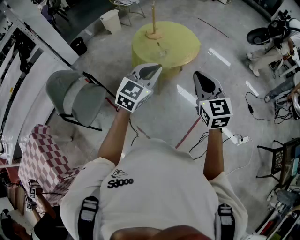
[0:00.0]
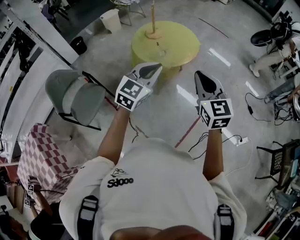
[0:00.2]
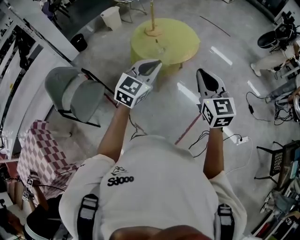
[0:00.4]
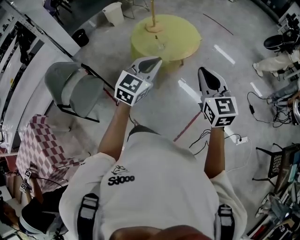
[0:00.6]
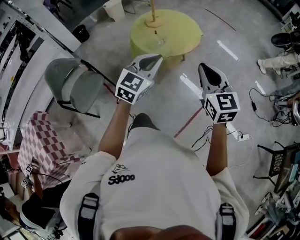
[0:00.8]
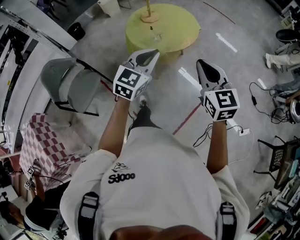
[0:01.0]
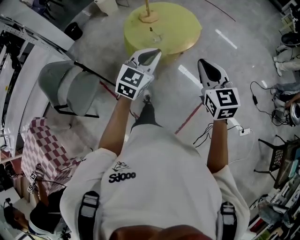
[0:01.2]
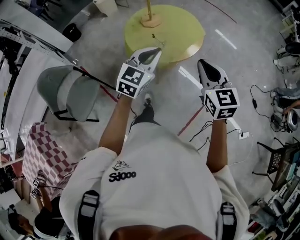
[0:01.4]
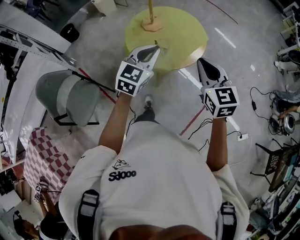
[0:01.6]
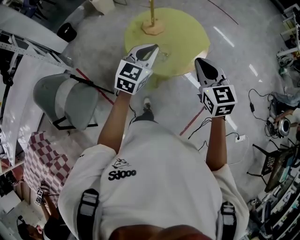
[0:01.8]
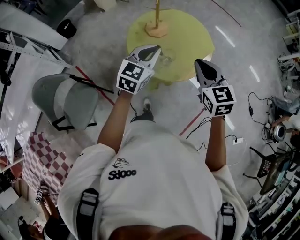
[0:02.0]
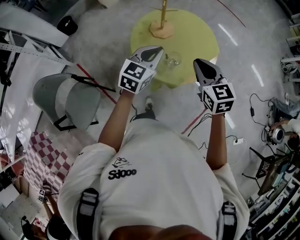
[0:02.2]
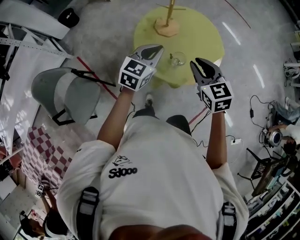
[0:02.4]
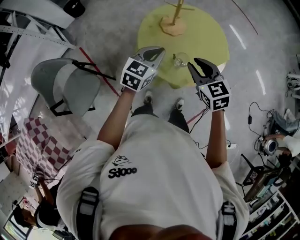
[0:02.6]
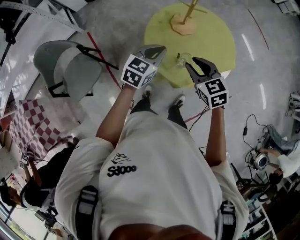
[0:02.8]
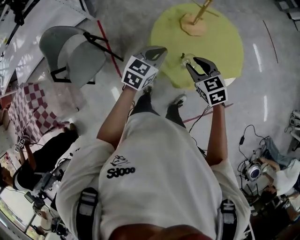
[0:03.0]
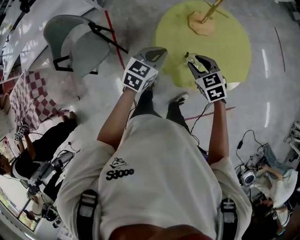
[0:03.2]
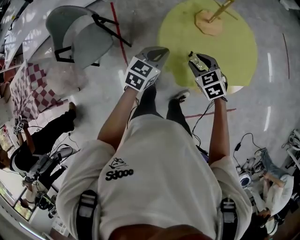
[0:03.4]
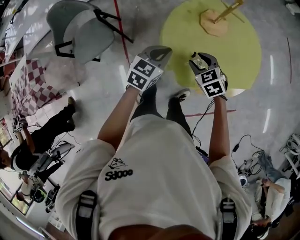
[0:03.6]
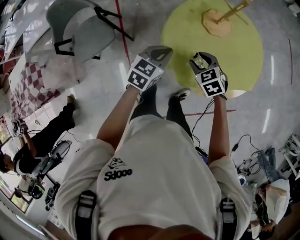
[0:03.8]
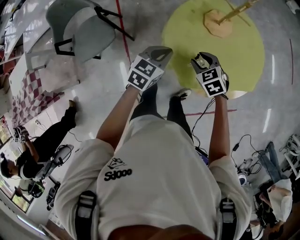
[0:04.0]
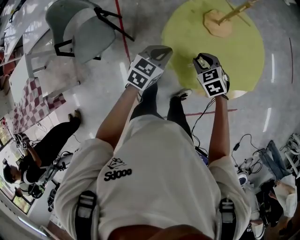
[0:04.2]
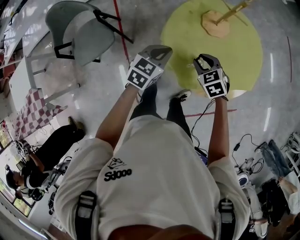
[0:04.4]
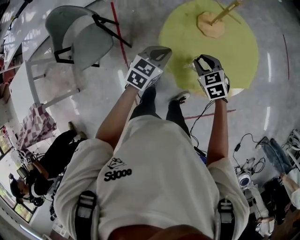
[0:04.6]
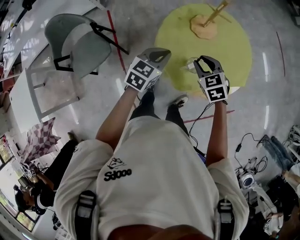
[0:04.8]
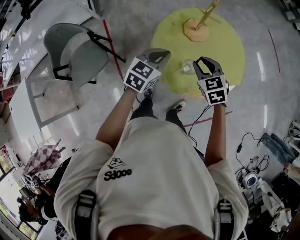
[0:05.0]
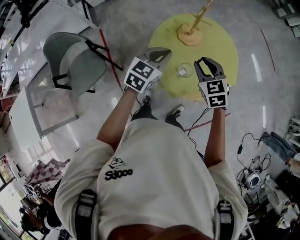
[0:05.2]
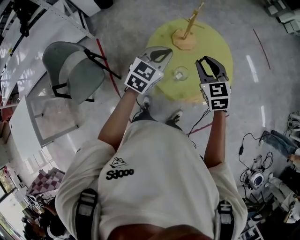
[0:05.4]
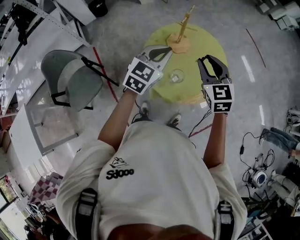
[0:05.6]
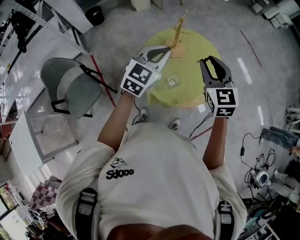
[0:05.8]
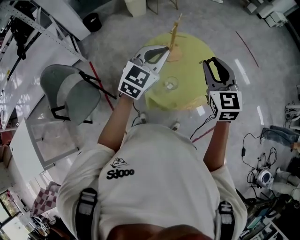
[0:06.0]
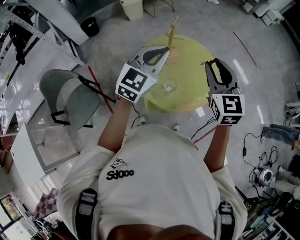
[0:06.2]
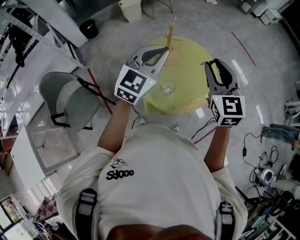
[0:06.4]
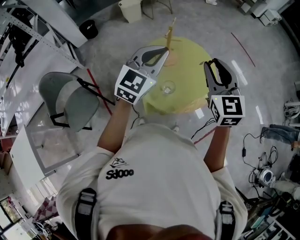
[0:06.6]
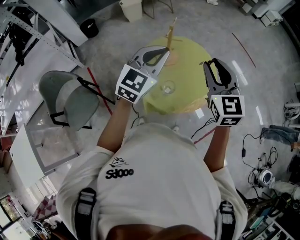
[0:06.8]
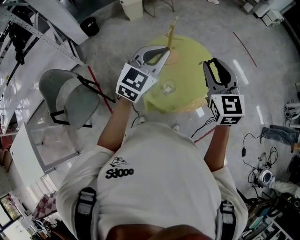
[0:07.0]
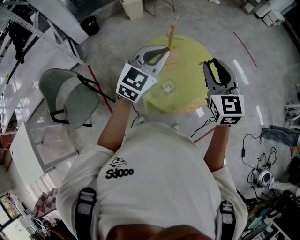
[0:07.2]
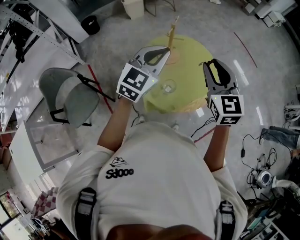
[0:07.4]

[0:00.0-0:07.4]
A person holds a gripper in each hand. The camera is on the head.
0:00.0 to 0:01.4: Both grippers travel together forward, approximately 15 cm.
0:01.4 to 0:03.0: The left gripper shifts by some 30 cm, and turns by approximately 30 degrees. The right gripper shifts by roughly 35 cm, changes its angle by roughly 50 degrees, and opens its fingers.
0:03.0 to 0:04.4: The right gripper goes some 15 cm downward and forward. Meanwhile the left gripper moves downward, roughly 10 cm.
0:04.4 to 0:06.0: The grippers both shift upward by roughly 30 cm. The right gripper tips its fingers upward by approximately 40 degrees. Meanwhile the left gripper rotates about 40 degrees.
0:06.0 to 0:07.4: The grippers move only a little.

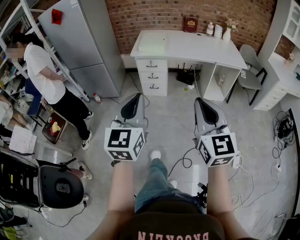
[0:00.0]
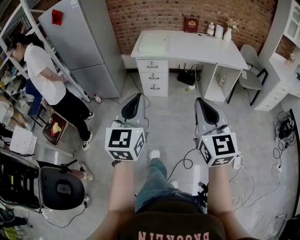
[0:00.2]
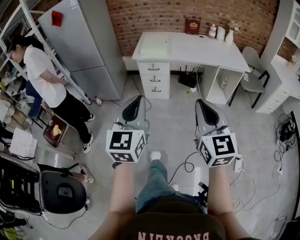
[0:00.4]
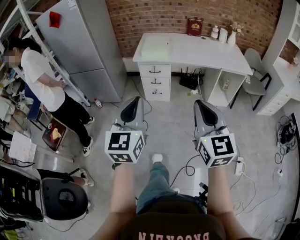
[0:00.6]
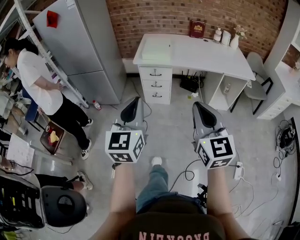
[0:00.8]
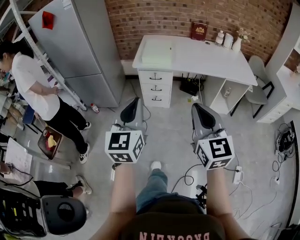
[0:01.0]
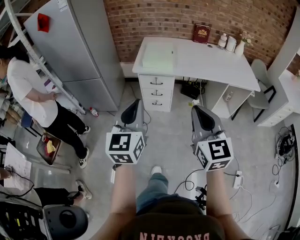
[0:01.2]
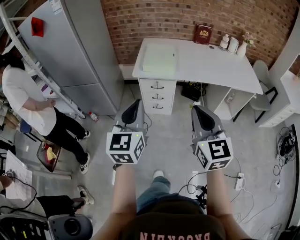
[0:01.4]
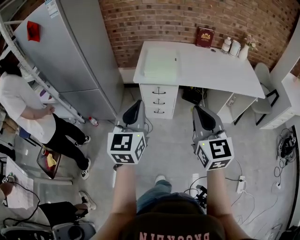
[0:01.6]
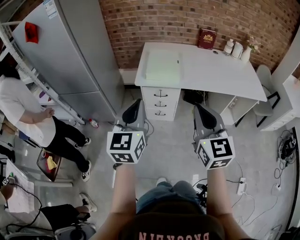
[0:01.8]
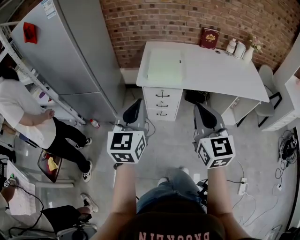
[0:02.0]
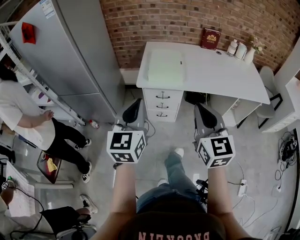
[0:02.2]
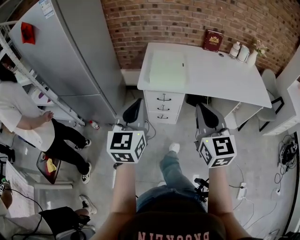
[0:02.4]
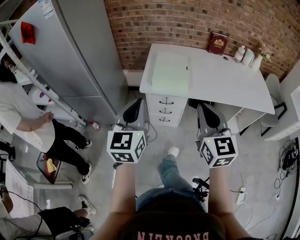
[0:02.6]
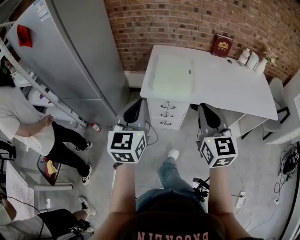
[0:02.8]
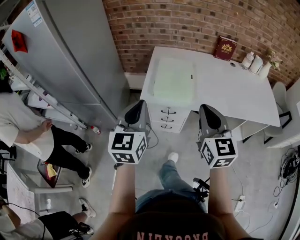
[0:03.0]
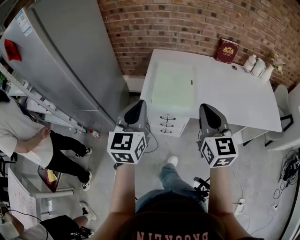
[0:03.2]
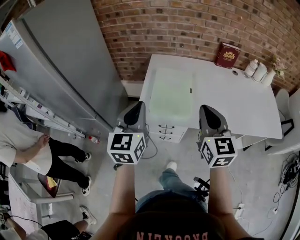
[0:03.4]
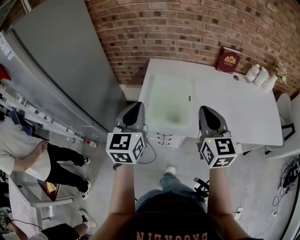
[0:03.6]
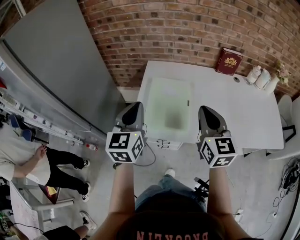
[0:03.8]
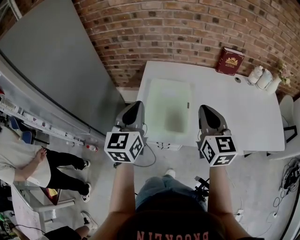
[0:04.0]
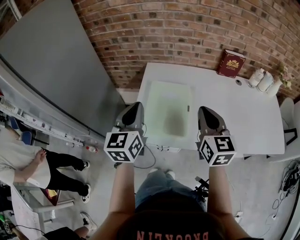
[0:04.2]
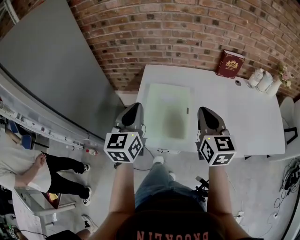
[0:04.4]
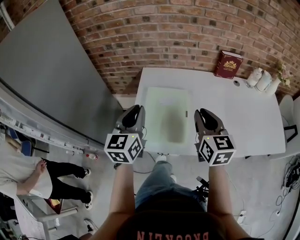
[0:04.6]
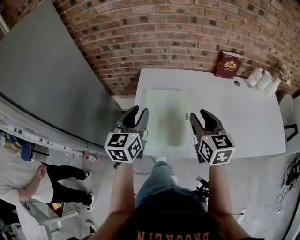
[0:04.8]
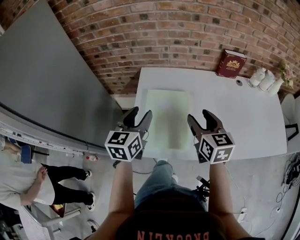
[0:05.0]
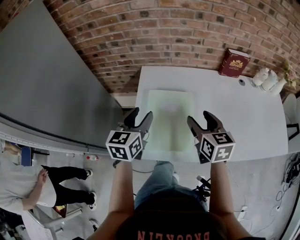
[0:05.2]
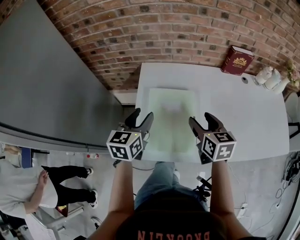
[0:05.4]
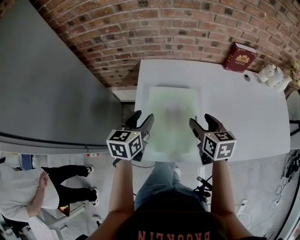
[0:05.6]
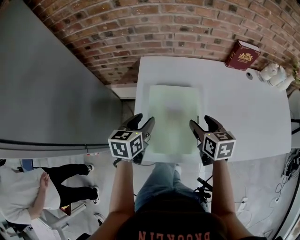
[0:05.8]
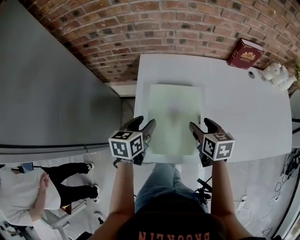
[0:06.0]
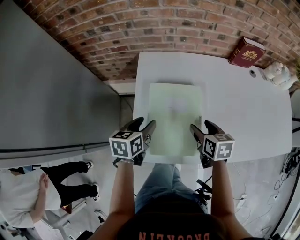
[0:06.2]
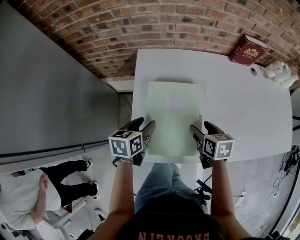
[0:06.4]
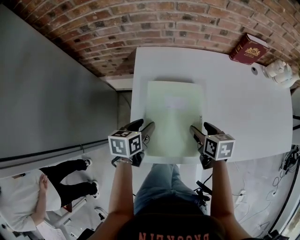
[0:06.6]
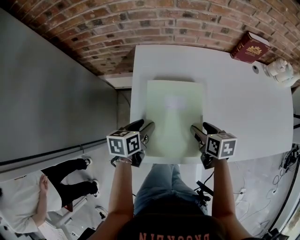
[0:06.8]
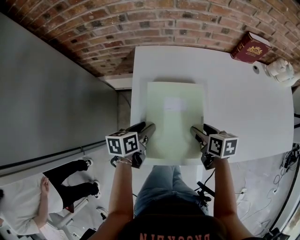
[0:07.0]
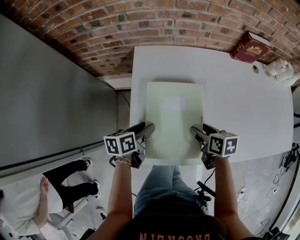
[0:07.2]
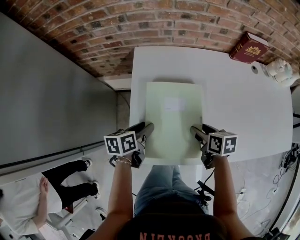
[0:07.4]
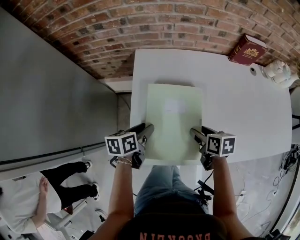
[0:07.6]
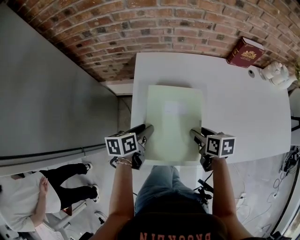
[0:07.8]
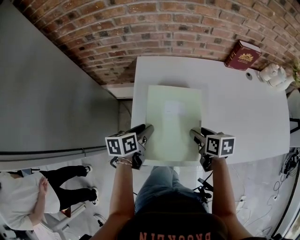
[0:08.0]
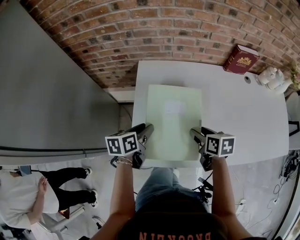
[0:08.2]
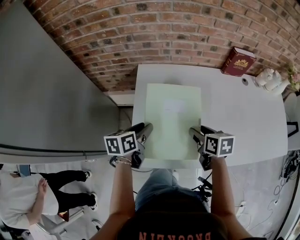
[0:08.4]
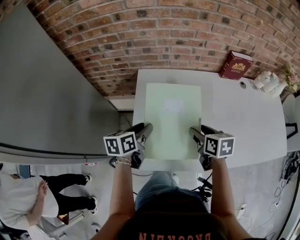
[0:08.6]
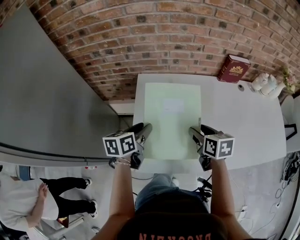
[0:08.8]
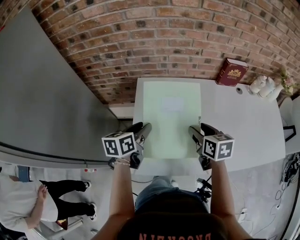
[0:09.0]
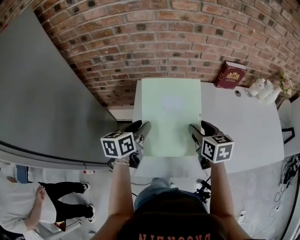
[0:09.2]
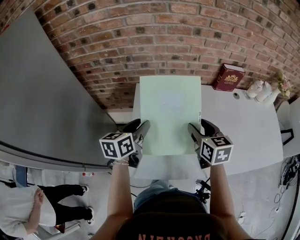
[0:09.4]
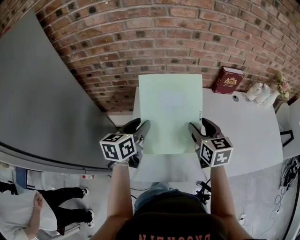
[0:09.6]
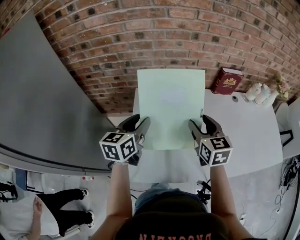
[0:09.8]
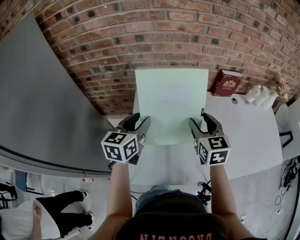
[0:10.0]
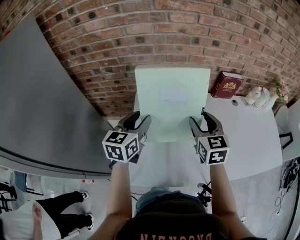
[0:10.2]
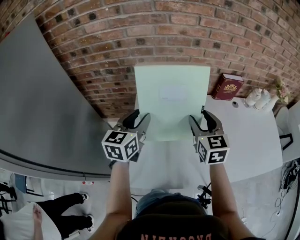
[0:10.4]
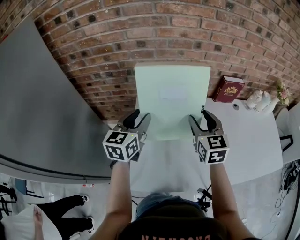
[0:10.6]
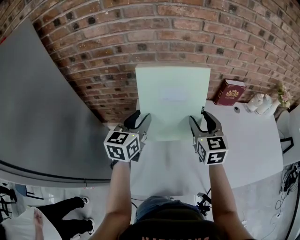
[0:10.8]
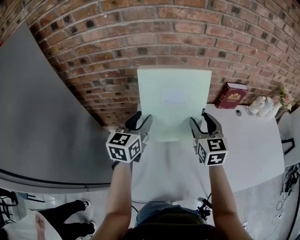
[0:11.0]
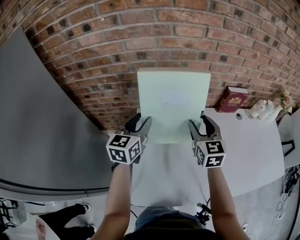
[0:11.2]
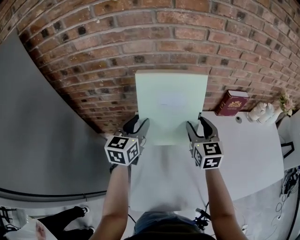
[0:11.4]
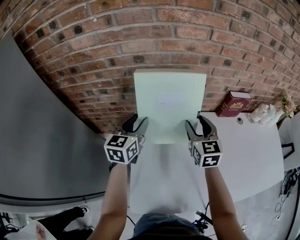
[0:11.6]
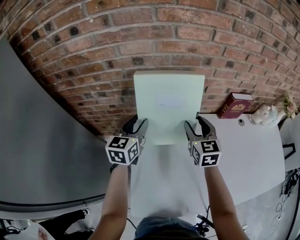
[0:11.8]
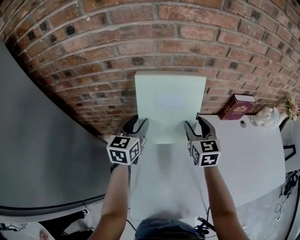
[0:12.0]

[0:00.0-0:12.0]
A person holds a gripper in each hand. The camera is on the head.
0:00.0 to 0:01.6: The two grippers go roughly 35 cm forward.
0:01.6 to 0:03.0: The two grippers go roughly 20 cm forward.
0:03.0 to 0:04.4: Both grippers travel together forward, some 25 cm.
0:04.4 to 0:06.0: Both grippers move downward and forward, about 20 cm. The left gripper tips its fingers downward by about 30 degrees, and opens up; the right gripper points its fingers about 30 degrees further downward, and opens its fingers.
0:06.0 to 0:07.6: Both grippers move downward, about 5 cm.
0:07.6 to 0:09.0: Both grippers move upward, some 10 cm. The right gripper rotates about 20 degrees.
0:09.0 to 0:10.4: Both grippers move upward and forward, some 15 cm. The right gripper swivels roughly 30 degrees; the left gripper rotates roughly 30 degrees.
0:10.4 to 0:12.0: The left gripper travels forward by roughly 15 cm. Meanwhile the right gripper is displaced forward and downward by approximately 20 cm.

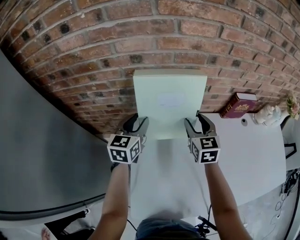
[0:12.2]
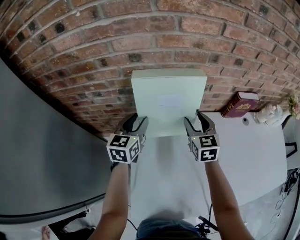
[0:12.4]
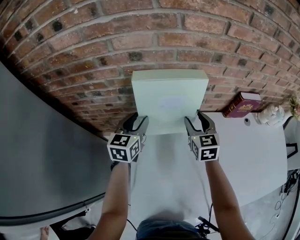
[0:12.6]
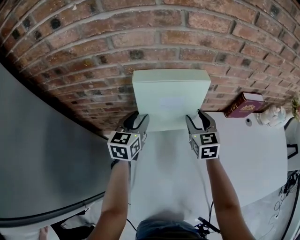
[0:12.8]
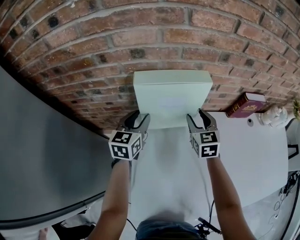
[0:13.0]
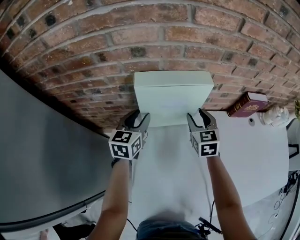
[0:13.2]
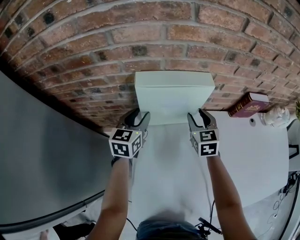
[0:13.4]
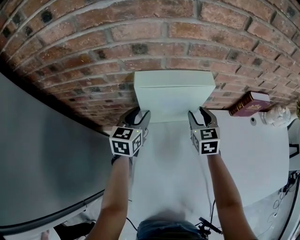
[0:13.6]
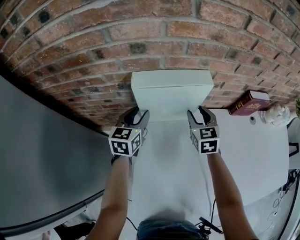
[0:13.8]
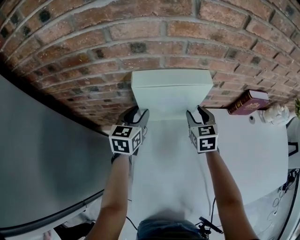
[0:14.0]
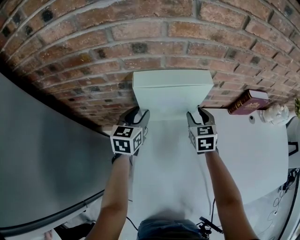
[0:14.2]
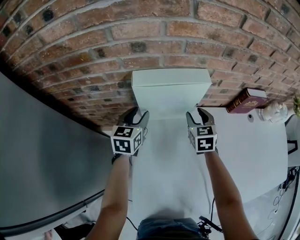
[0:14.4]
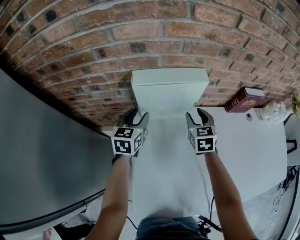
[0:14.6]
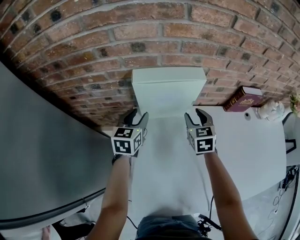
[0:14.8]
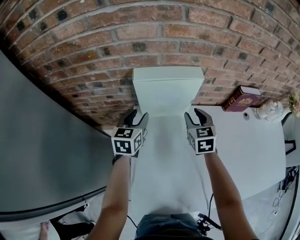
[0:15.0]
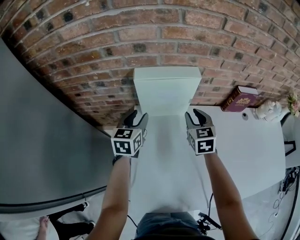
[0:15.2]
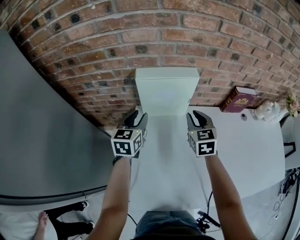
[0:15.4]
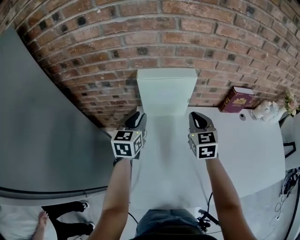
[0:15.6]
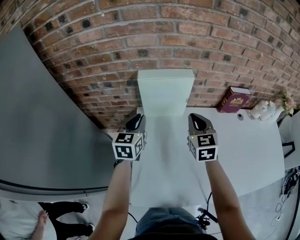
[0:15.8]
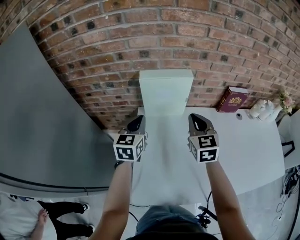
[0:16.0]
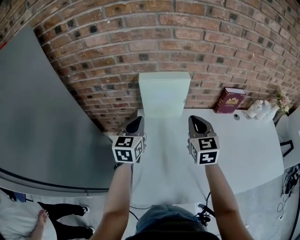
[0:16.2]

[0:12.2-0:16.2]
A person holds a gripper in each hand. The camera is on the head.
0:12.2 to 0:13.6: The left gripper is displaced downward by about 5 cm. The right gripper goes about 10 cm downward and forward.
0:13.6 to 0:14.8: There are only small adjustments of the grippers.
0:14.8 to 0:16.2: The left gripper moves backward and upward, roughly 15 cm, and closes up. Meanwhile the right gripper travels upward and backward by roughly 20 cm, and closes up.
